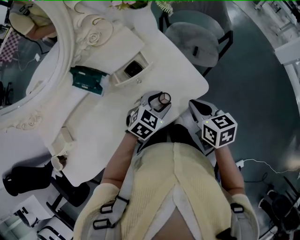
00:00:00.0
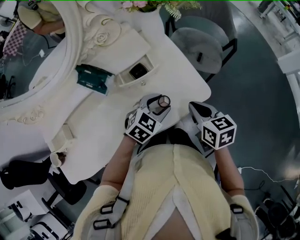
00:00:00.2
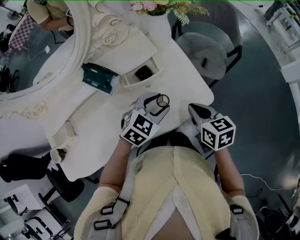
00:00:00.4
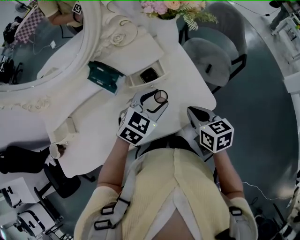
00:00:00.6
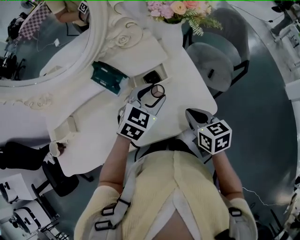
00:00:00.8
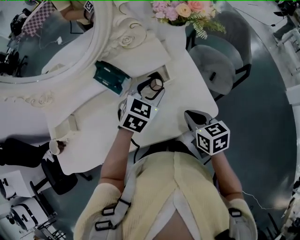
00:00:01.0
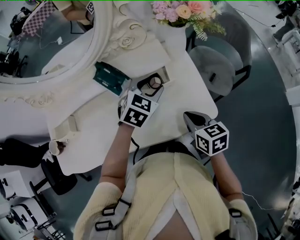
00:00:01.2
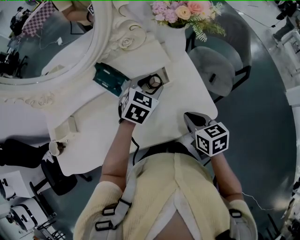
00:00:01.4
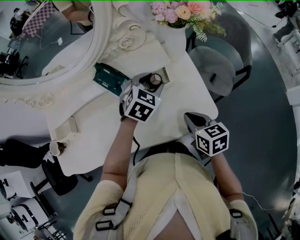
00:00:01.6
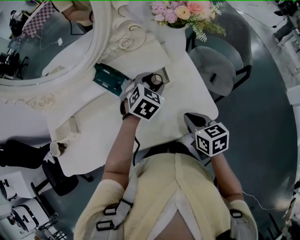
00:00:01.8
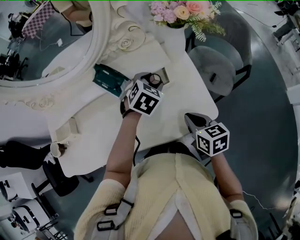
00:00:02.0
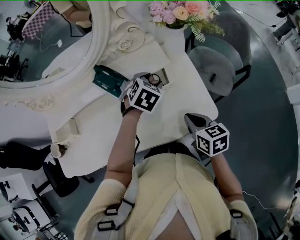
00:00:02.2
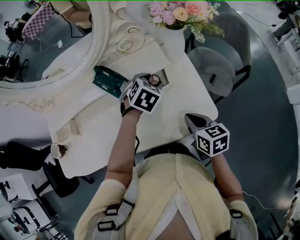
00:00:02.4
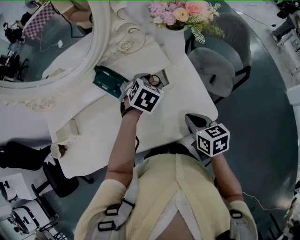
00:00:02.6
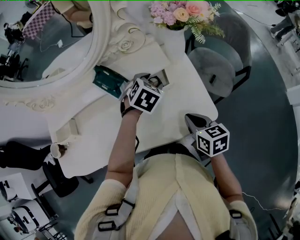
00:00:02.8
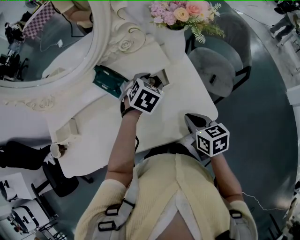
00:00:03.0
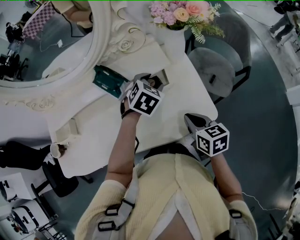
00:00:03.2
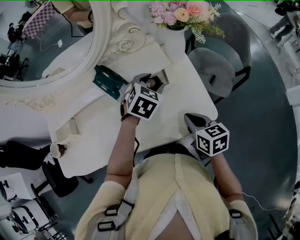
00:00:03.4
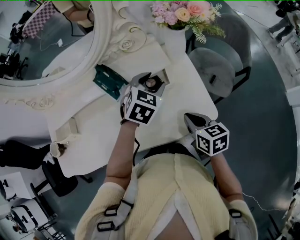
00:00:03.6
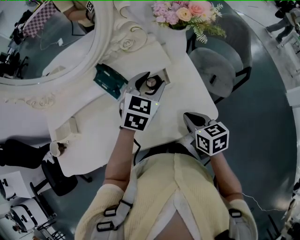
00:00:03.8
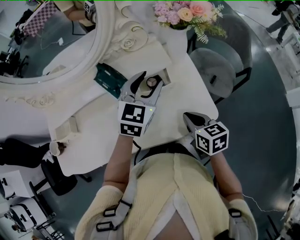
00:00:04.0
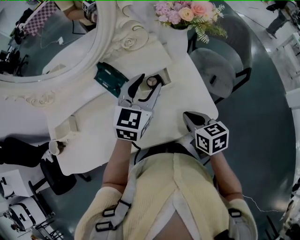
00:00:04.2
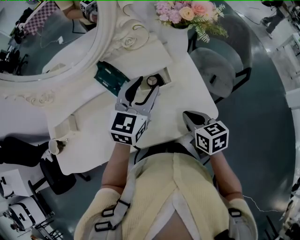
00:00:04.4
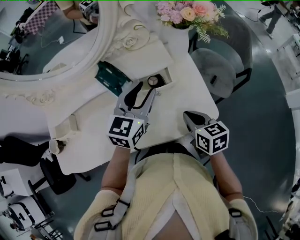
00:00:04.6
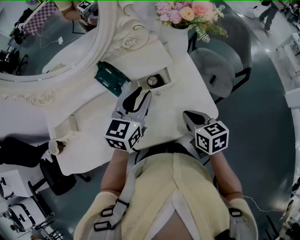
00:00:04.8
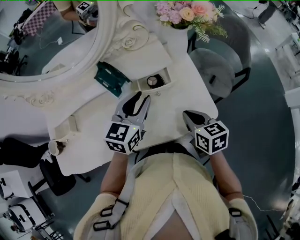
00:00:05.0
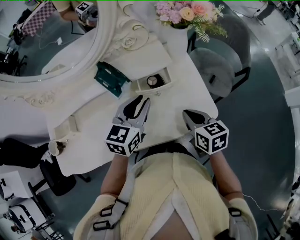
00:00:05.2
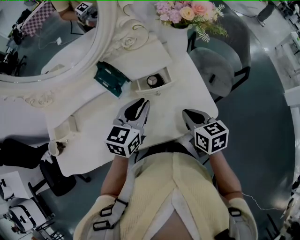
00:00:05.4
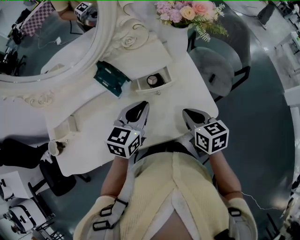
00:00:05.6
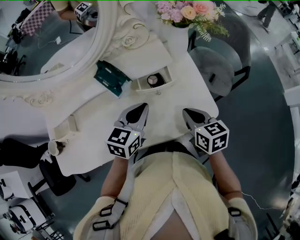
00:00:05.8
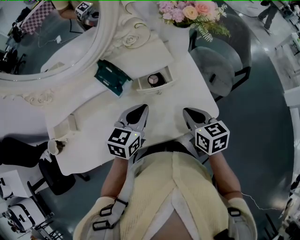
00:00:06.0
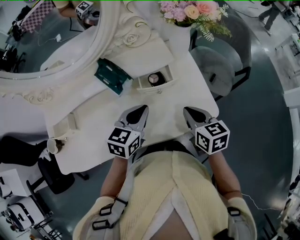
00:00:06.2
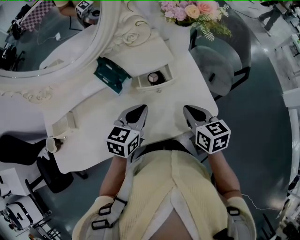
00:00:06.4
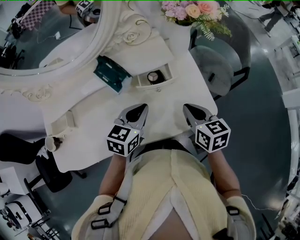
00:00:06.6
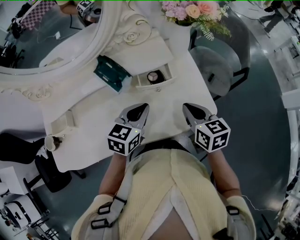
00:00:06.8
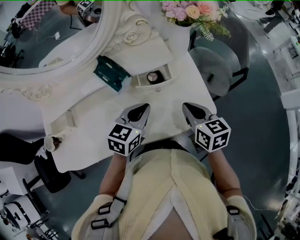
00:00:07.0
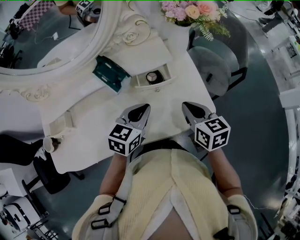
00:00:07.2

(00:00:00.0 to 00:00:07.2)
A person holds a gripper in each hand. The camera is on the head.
00:00:00.0 - 00:00:01.4: The left gripper heads forward, to the left and upward, covering approximately 20 cm, and swivels roughly 30 degrees. Meanwhile the right gripper goes some 5 cm to the left.
00:00:01.4 - 00:00:02.8: There are only small adjustments of the grippers.
00:00:02.8 - 00:00:04.4: The left gripper moves upward and backward, approximately 10 cm, and angles its fingers upward, by about 40 degrees.
00:00:04.4 - 00:00:05.8: The left gripper moves downward and backward, roughly 10 cm, and closes up.
00:00:05.8 - 00:00:07.2: The grippers stay close to where they were, moving slightly.

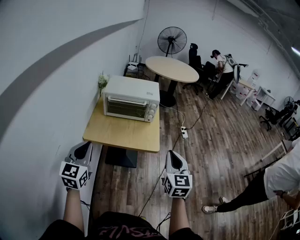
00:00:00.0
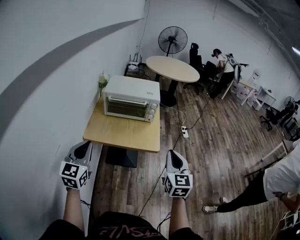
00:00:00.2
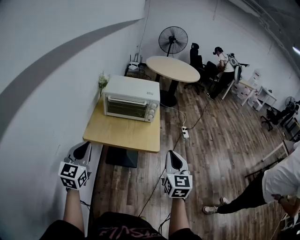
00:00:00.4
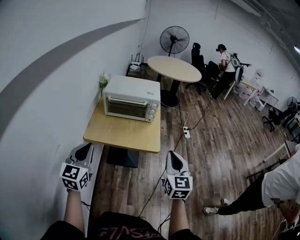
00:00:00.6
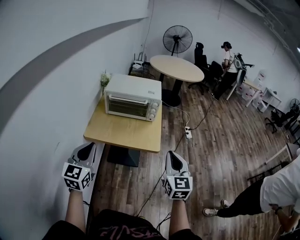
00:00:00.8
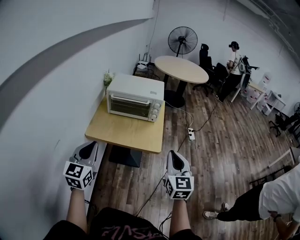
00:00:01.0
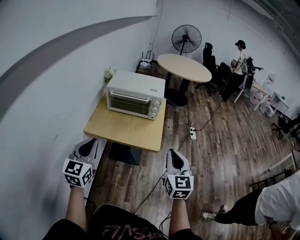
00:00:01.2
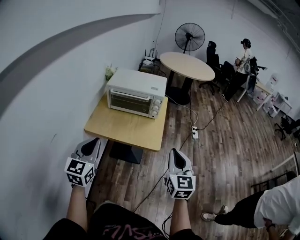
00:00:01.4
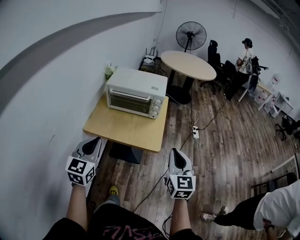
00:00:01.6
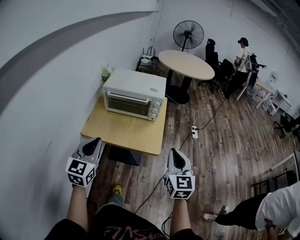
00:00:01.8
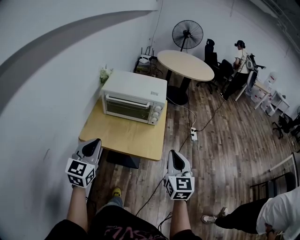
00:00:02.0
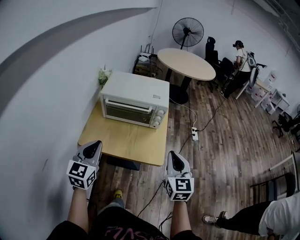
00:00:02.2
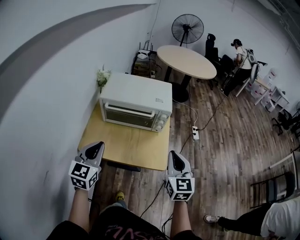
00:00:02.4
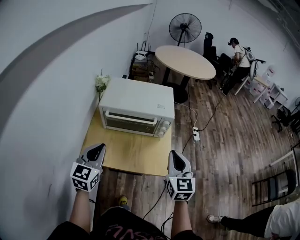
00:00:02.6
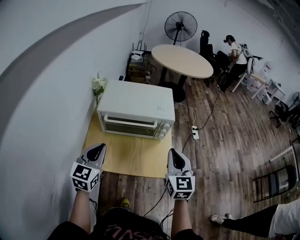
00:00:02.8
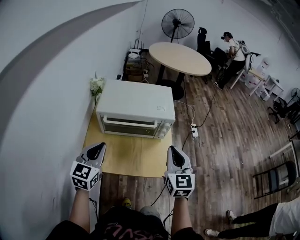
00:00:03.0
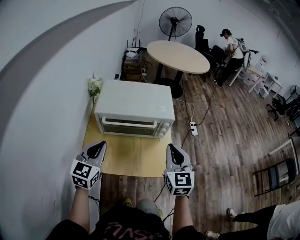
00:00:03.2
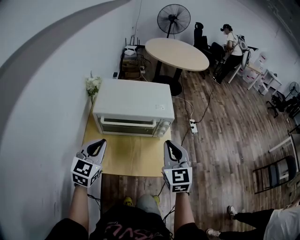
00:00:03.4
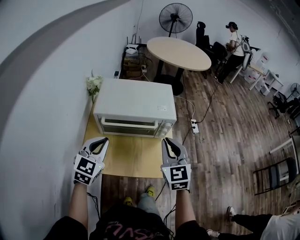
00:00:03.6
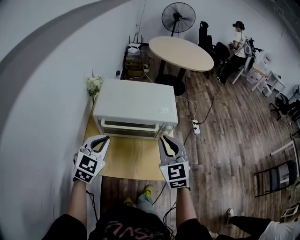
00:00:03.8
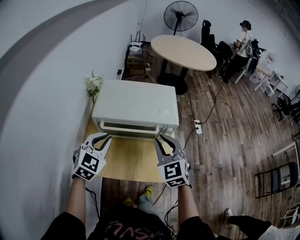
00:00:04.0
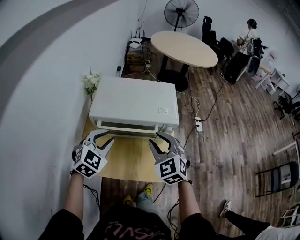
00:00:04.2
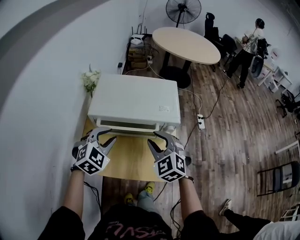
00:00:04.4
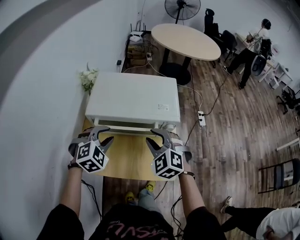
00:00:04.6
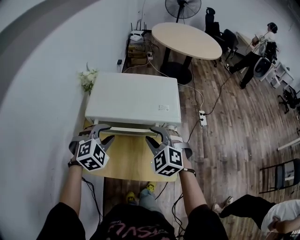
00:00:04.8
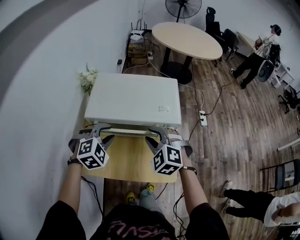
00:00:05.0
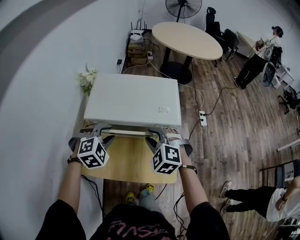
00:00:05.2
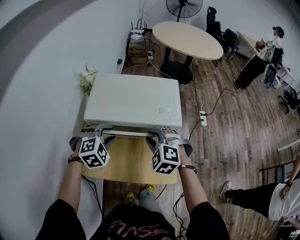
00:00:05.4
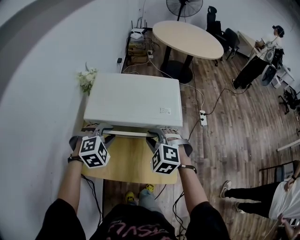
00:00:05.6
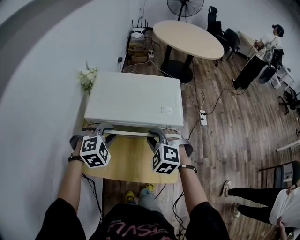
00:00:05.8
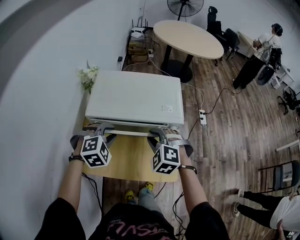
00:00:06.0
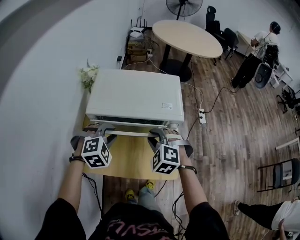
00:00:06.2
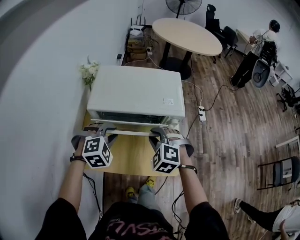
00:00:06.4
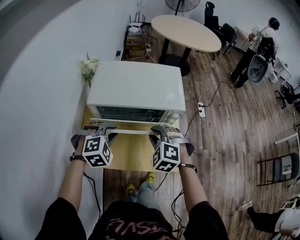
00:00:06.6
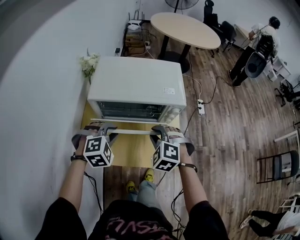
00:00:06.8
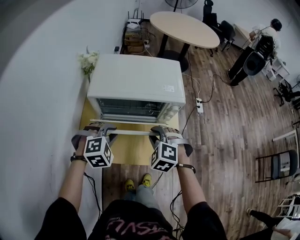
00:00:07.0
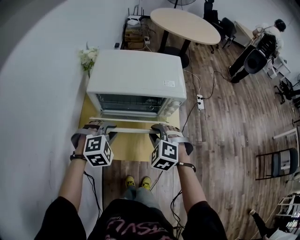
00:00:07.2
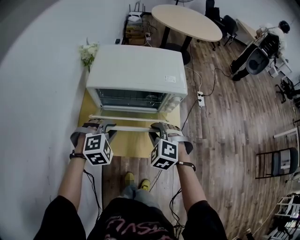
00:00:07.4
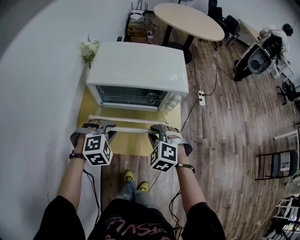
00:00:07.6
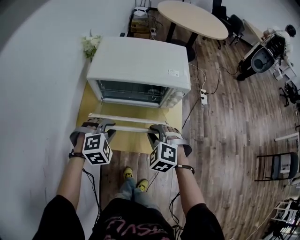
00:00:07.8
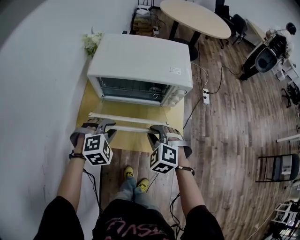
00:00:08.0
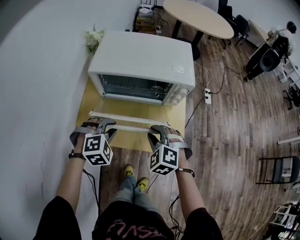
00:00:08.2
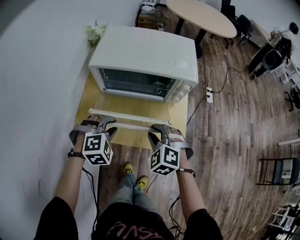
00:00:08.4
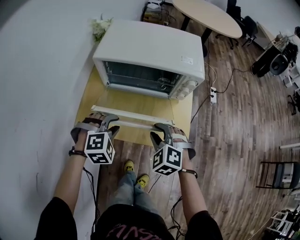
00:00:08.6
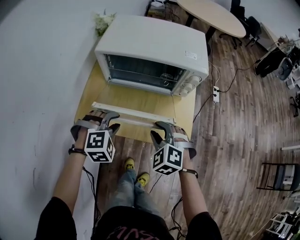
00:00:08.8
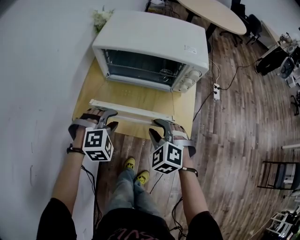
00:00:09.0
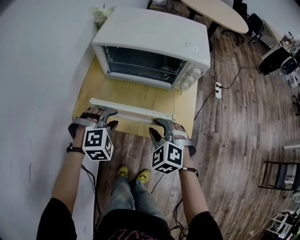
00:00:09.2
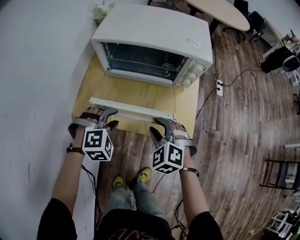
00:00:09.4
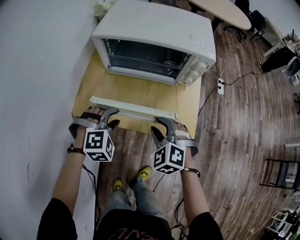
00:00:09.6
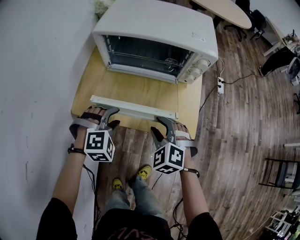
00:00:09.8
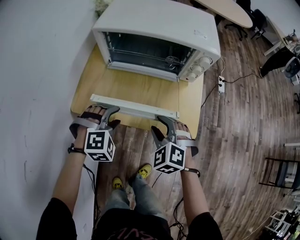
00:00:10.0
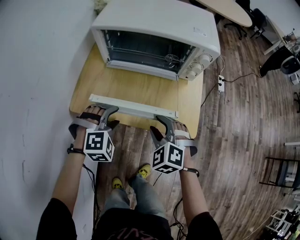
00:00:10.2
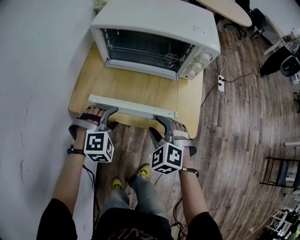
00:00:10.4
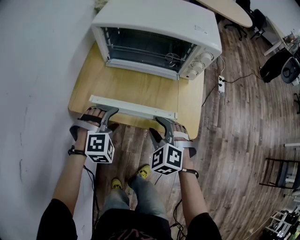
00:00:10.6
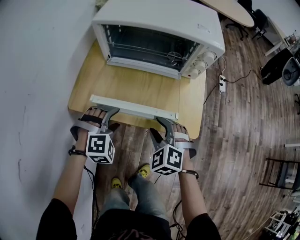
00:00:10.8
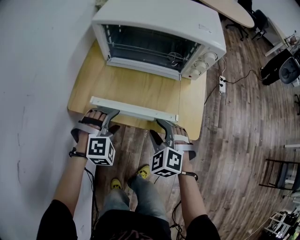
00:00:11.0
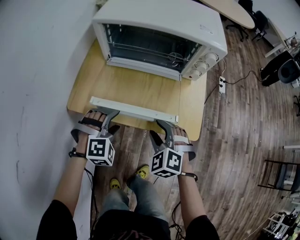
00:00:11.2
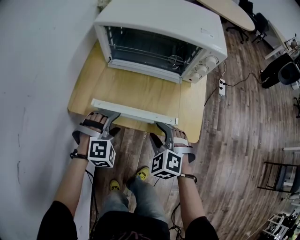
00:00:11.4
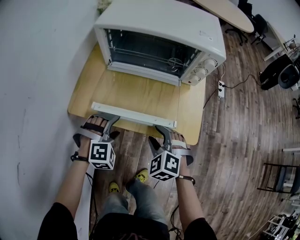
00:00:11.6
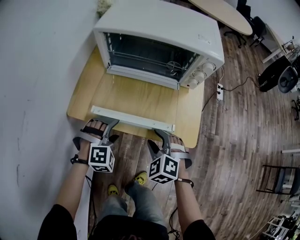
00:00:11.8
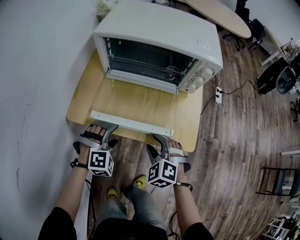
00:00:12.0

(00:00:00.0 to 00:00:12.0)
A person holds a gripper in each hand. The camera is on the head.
00:00:00.0 - 00:00:01.6: The left gripper goes approximately 10 cm to the right; the right gripper shifts about 10 cm to the right and forward.
00:00:01.6 - 00:00:03.0: The left gripper travels forward by some 25 cm. Meanwhile the right gripper is displaced forward and to the left by about 25 cm.
00:00:03.0 - 00:00:04.4: The right gripper heads forward, to the left and downward, covering some 15 cm, changes its angle by some 50 degrees, and opens. Meanwhile the left gripper shifts approximately 15 cm forward and downward, swivels approximately 40 degrees, and opens its fingers.
00:00:04.4 - 00:00:06.0: The left gripper shifts by approximately 5 cm, and swivels some 20 degrees. Meanwhile the right gripper heads downward, covering roughly 5 cm, and changes its angle by some 20 degrees.
00:00:06.0 - 00:00:07.6: Both grippers travel together backward and downward, some 10 cm.
00:00:07.6 - 00:00:09.0: The grippers both shift downward and backward by roughly 10 cm.
00:00:09.0 - 00:00:10.4: The two grippers go about 5 cm downward.
00:00:10.4 - 00:00:12.0: The left gripper shifts roughly 5 cm downward.

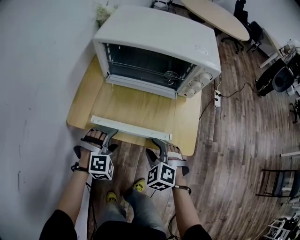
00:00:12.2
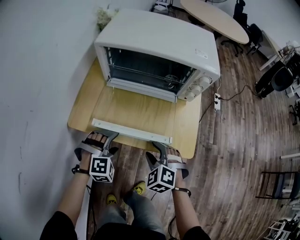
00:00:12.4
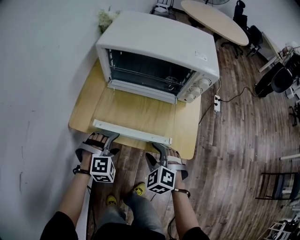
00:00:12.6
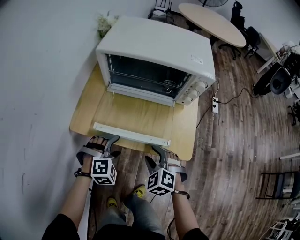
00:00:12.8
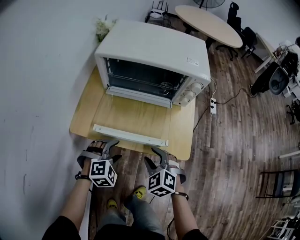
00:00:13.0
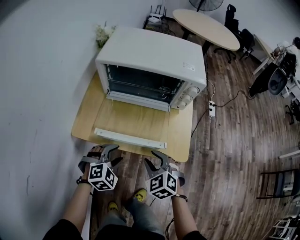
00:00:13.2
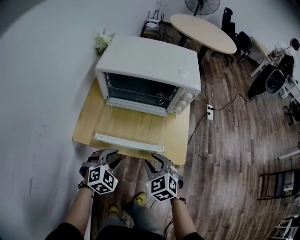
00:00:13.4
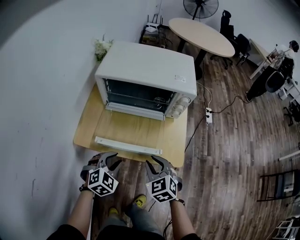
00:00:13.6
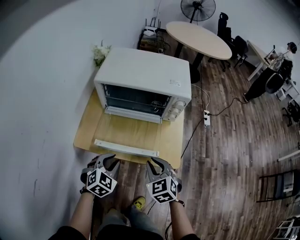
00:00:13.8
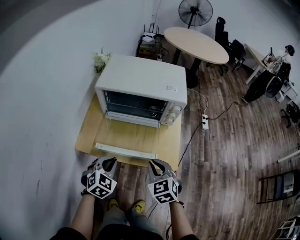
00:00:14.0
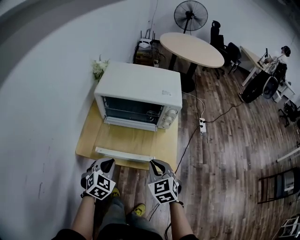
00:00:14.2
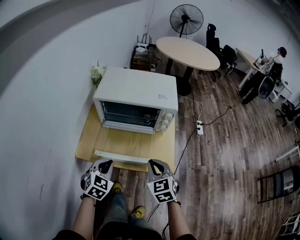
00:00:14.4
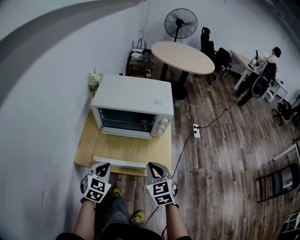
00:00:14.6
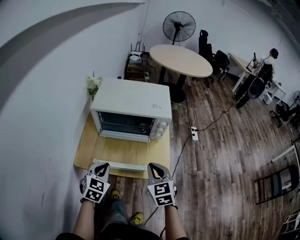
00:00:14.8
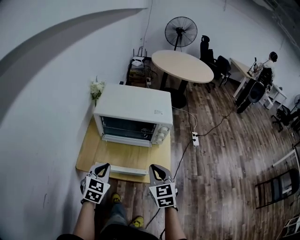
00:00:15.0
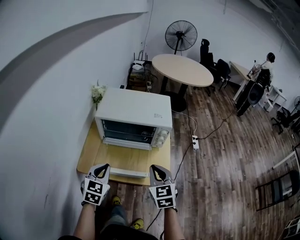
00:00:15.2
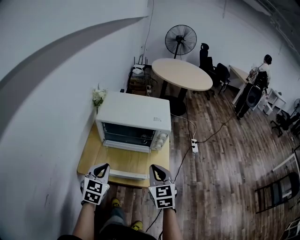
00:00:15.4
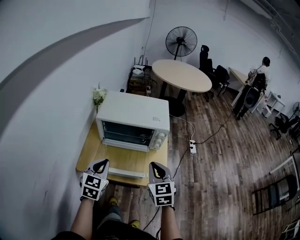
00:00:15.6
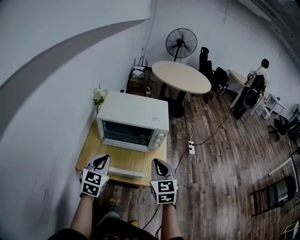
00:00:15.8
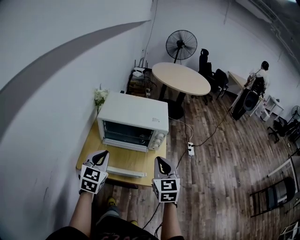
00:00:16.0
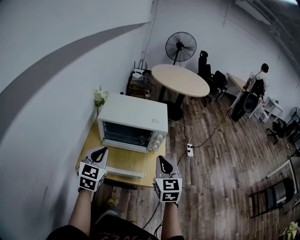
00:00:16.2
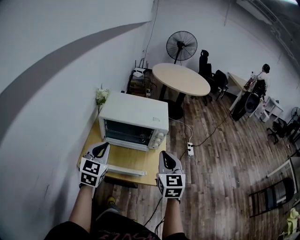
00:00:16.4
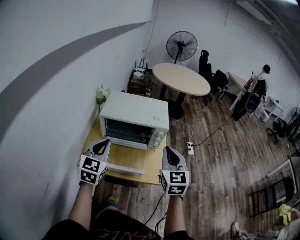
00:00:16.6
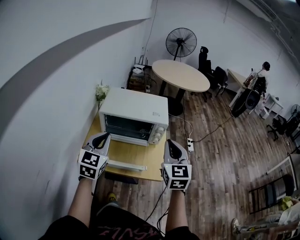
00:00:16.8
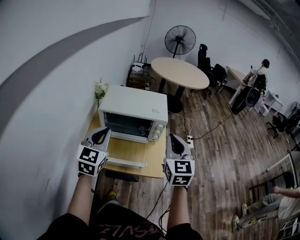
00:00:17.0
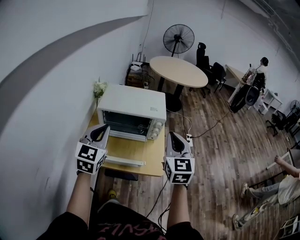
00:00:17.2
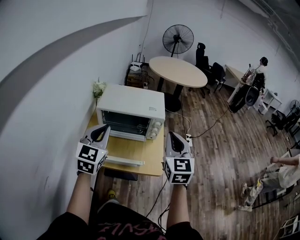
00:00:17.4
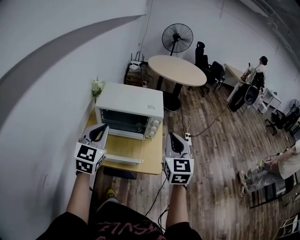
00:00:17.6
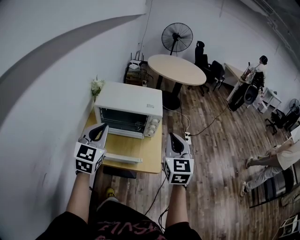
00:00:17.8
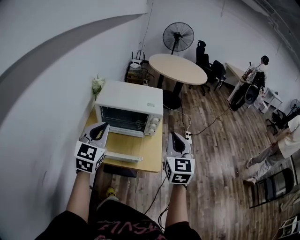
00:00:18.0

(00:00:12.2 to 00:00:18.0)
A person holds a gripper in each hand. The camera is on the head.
00:00:12.2 - 00:00:13.6: The grippers both shift upward by about 10 cm. The left gripper turns by approximately 30 degrees, and closes its fingers. The right gripper rotates some 30 degrees, and closes.
00:00:13.6 - 00:00:15.0: The grippers both shift upward by about 15 cm. The left gripper turns by about 30 degrees, and closes up; the right gripper rotates some 20 degrees, and closes its fingers.
00:00:15.0 - 00:00:16.6: The two grippers go about 15 cm upward.
00:00:16.6 - 00:00:18.0: The right gripper moves some 5 cm. The left gripper changes place by roughly 5 cm.
